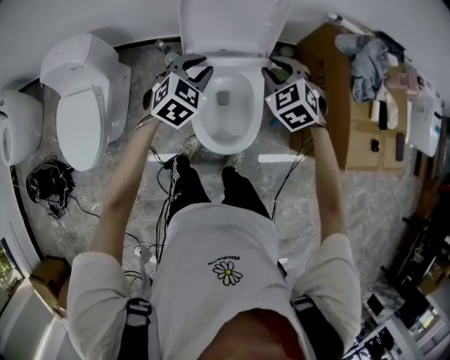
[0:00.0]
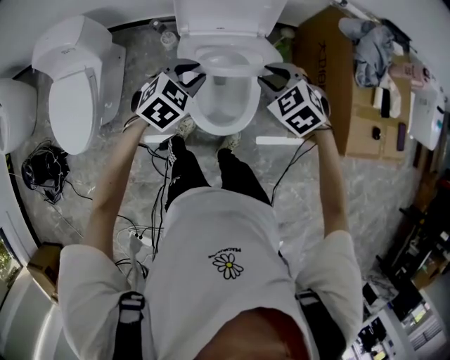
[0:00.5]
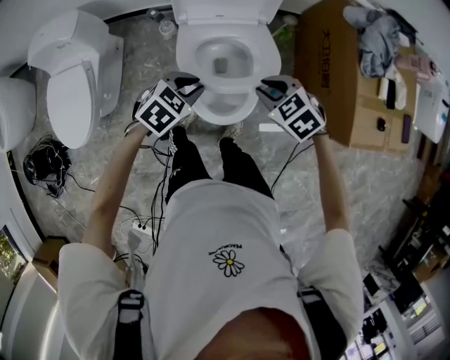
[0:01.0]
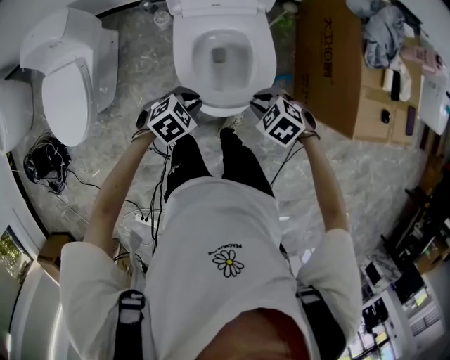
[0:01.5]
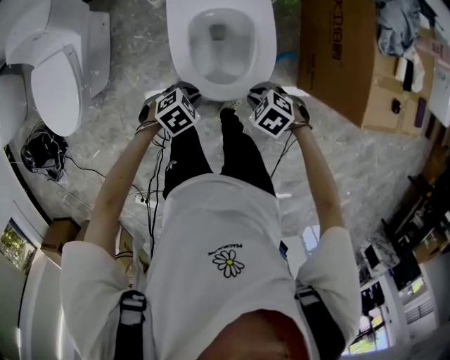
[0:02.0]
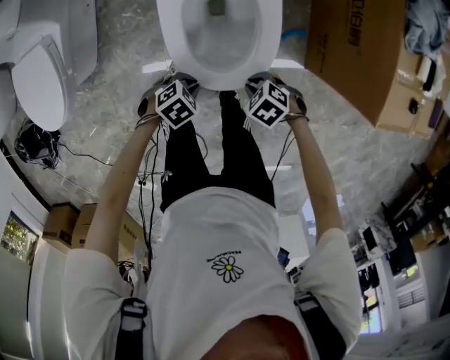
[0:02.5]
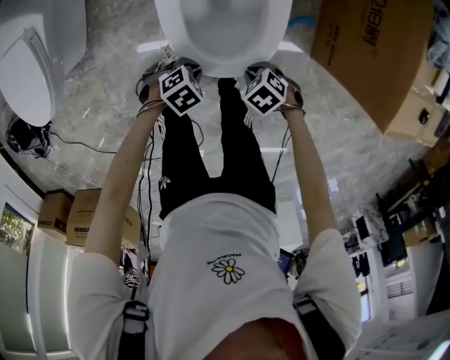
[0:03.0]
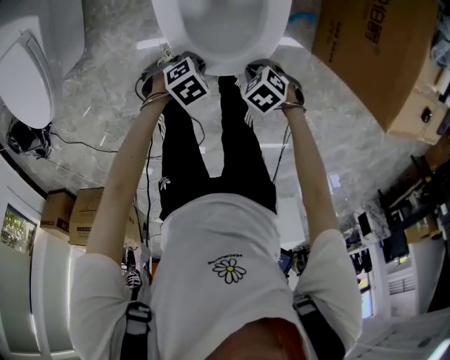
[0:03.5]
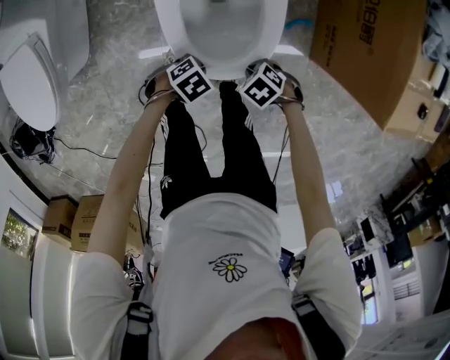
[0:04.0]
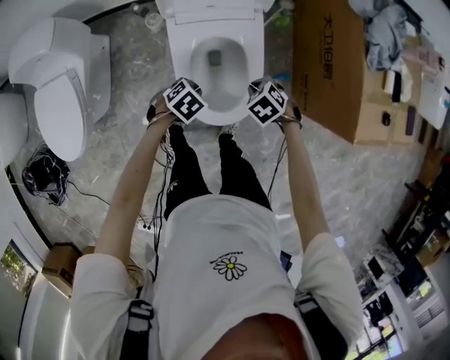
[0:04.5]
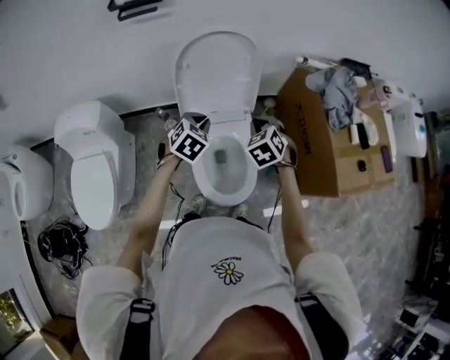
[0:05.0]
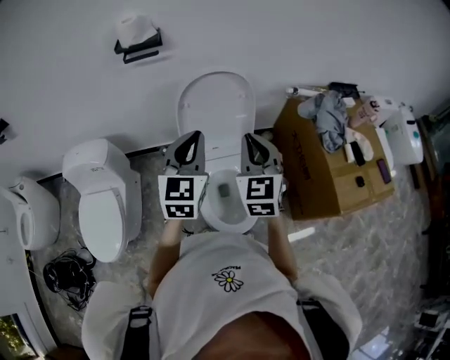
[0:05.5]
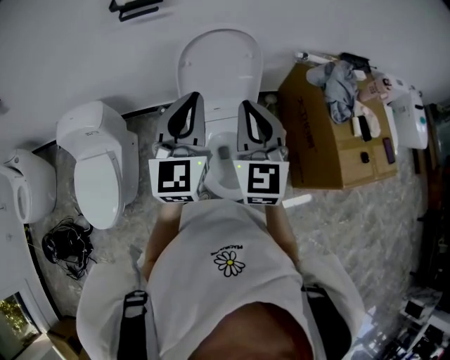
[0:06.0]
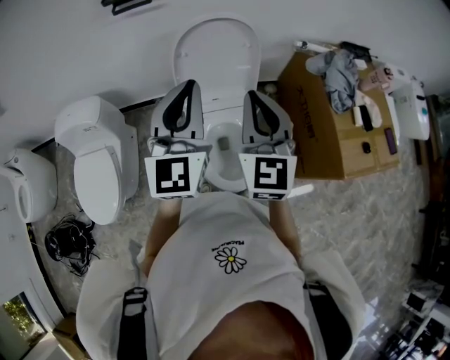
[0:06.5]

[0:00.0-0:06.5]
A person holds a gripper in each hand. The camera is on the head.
0.0 to 2.0 s: The right gripper ends up approximately 35 cm from where it was, and changes its angle by approximately 40 degrees. The left gripper ends up about 35 cm from where it was, and swivels approximately 40 degrees.
2.0 to 4.5 s: The left gripper travels downward and back again, some 15 cm each way. Meanwhile the right gripper reaches about 15 cm downward, then returns.
4.5 to 6.5 s: Both grippers travel together upward, roughly 50 cm. The right gripper angles its fingers upward, by roughly 70 degrees; the left gripper tilts its fingers approximately 80 degrees upward.

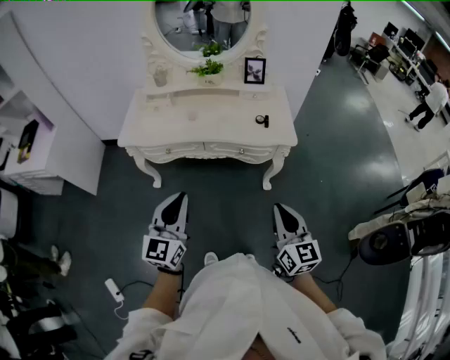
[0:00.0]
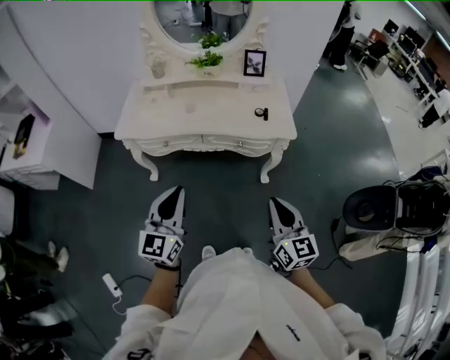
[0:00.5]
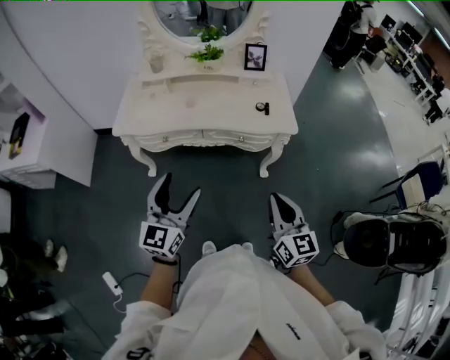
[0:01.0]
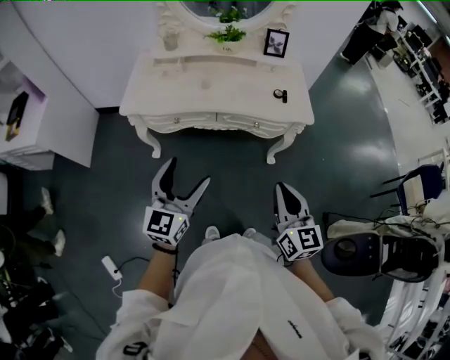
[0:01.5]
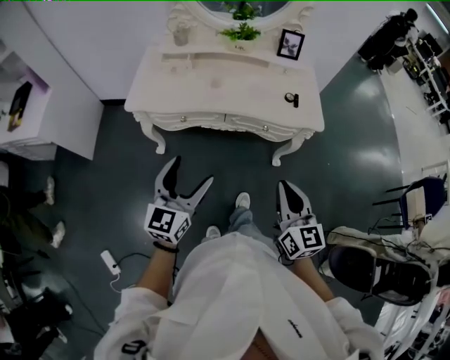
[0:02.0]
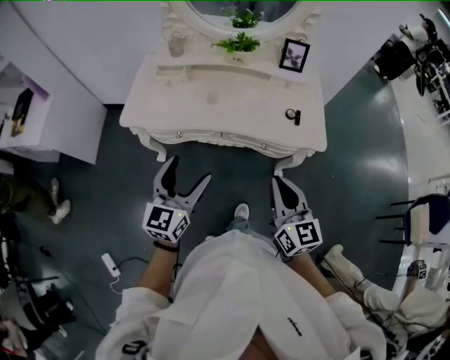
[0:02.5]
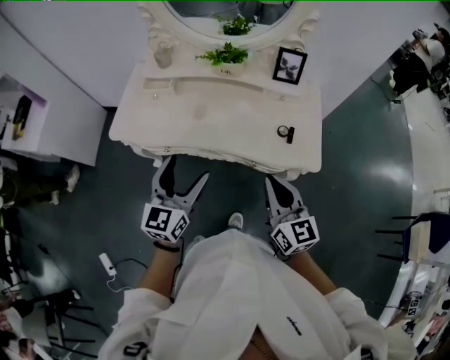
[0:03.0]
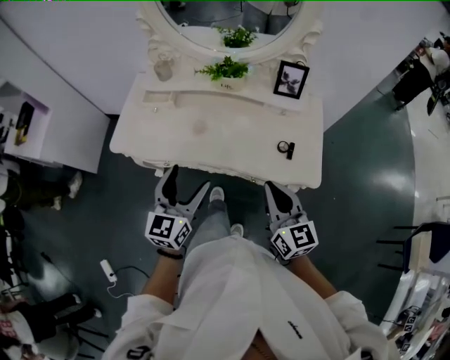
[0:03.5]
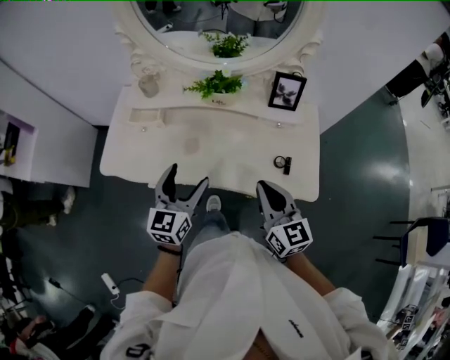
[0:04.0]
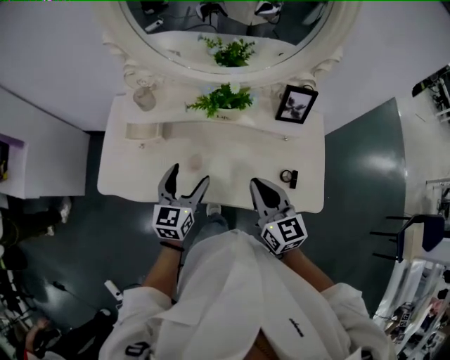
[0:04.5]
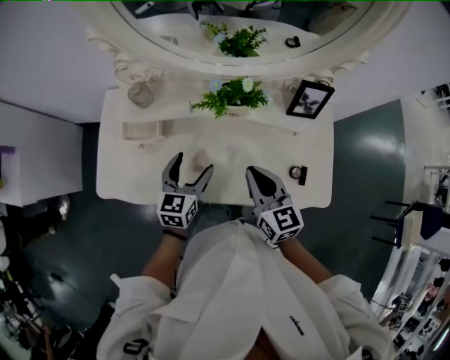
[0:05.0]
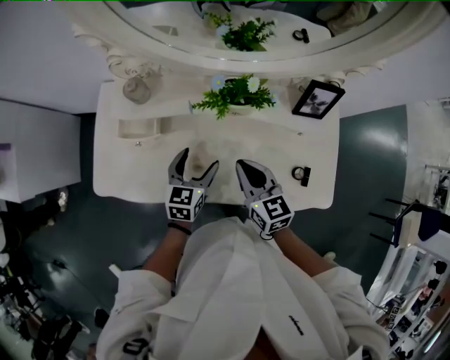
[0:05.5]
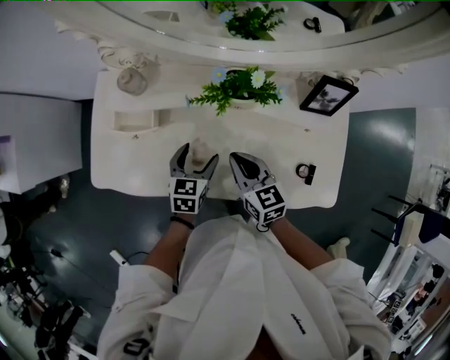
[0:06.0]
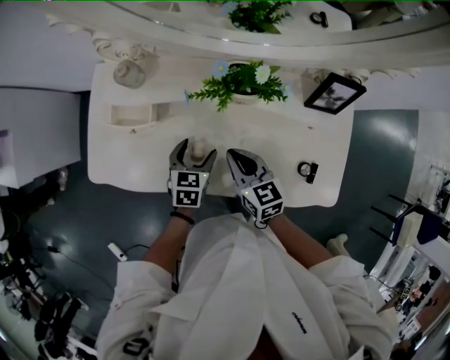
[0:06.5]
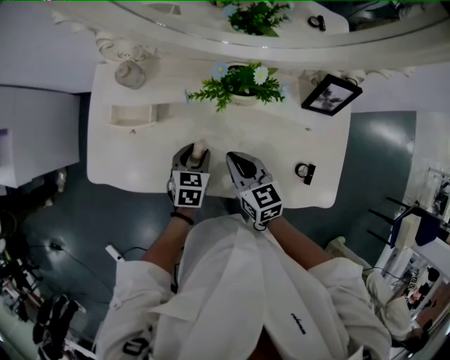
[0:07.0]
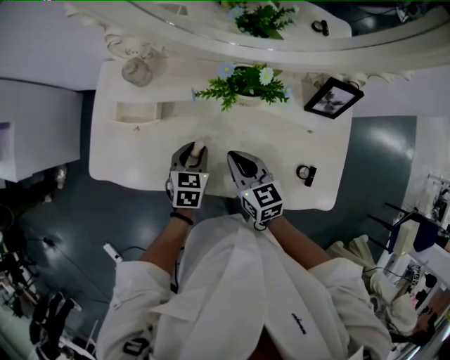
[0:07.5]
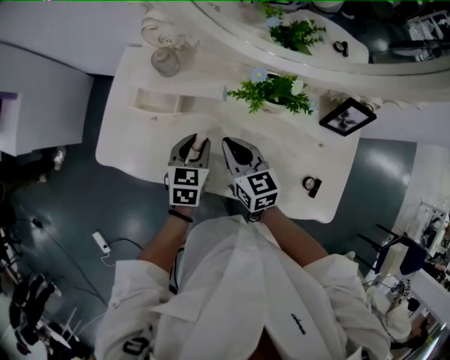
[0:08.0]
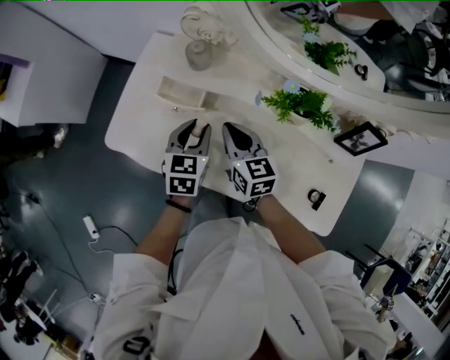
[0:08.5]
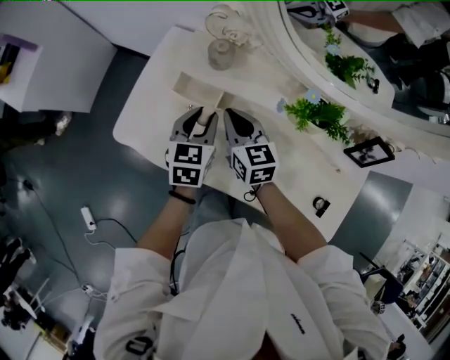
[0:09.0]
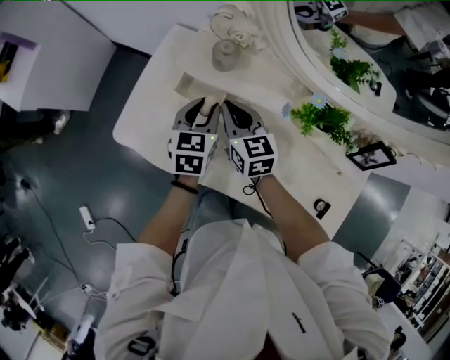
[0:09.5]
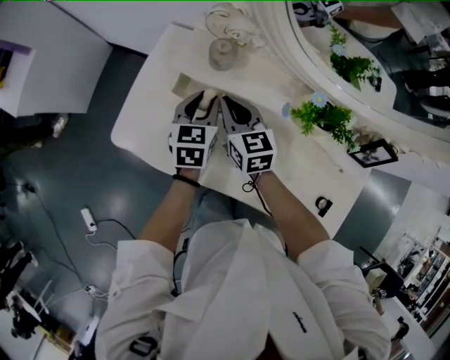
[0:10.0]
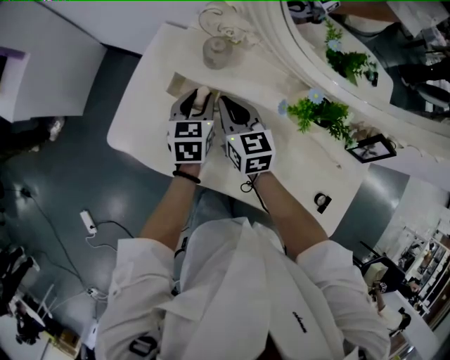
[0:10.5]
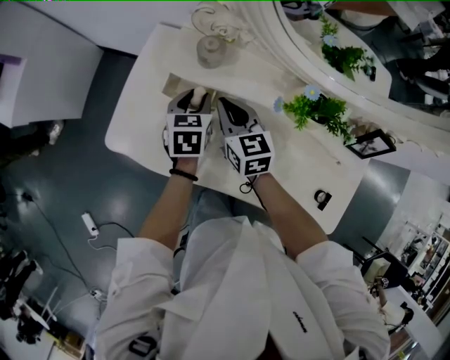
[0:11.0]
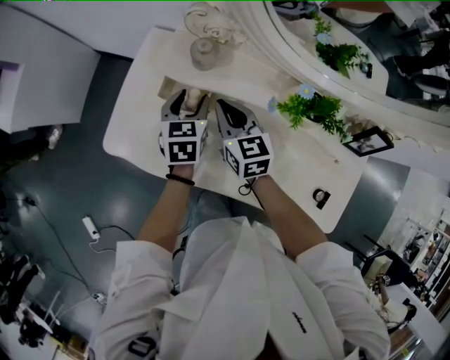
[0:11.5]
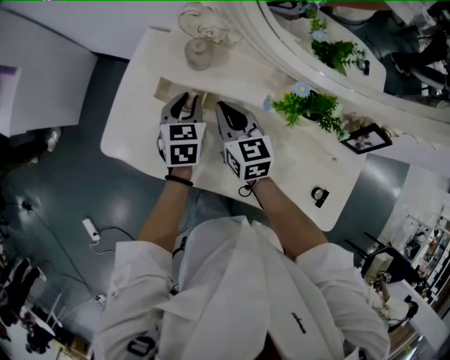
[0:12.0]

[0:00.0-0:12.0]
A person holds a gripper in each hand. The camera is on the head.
0.0 to 2.0 s: The left gripper moves to the left, forward and downward, some 15 cm, and opens up, while the right gripper goes roughly 15 cm to the left and forward.
2.0 to 4.0 s: Both grippers travel together forward, some 35 cm.
4.0 to 6.0 s: The left gripper goes approximately 25 cm downward and forward, and turns by about 30 degrees; the right gripper is displaced forward, downward and to the left by about 30 cm, and rotates about 20 degrees.
6.0 to 8.0 s: Both grippers travel together to the left, about 5 cm. The left gripper closes up.
8.0 to 10.0 s: The two grippers go approximately 15 cm forward and to the left.
10.0 to 12.0 s: The grippers move only a little.

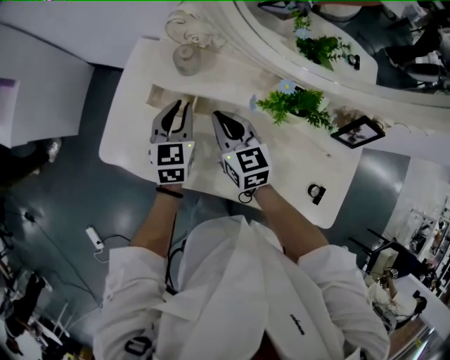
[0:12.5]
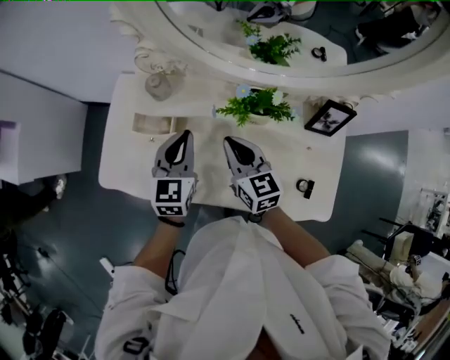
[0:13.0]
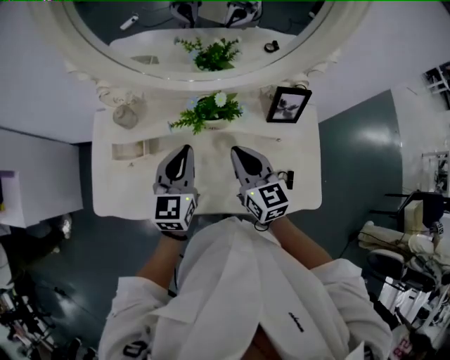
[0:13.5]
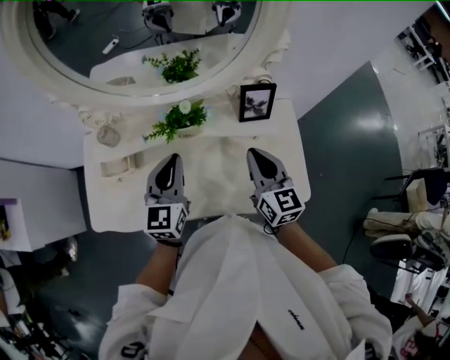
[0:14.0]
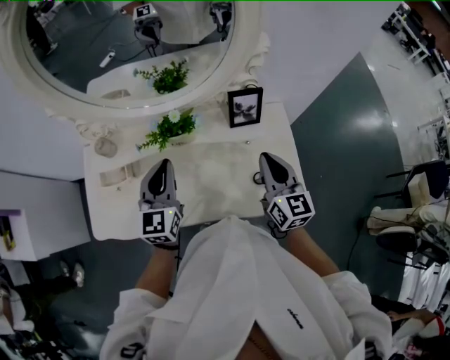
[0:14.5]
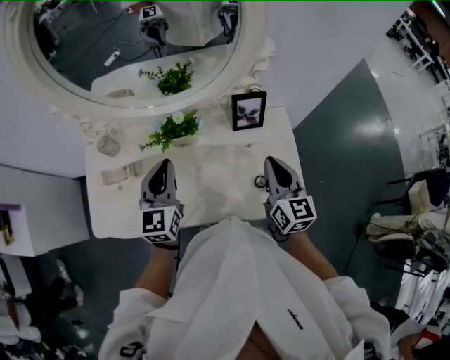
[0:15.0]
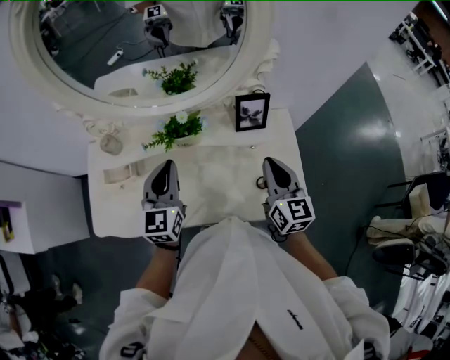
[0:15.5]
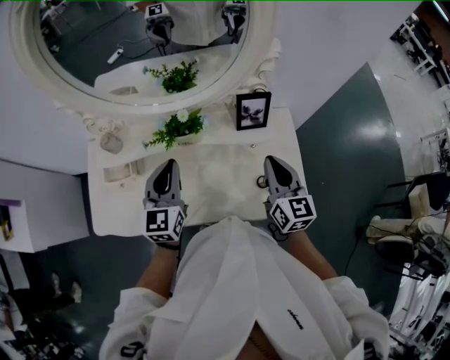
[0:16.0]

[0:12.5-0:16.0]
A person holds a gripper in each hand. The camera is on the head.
12.5 to 14.5 s: The right gripper moves some 50 cm, and swivels approximately 40 degrees. Meanwhile the left gripper shifts by roughly 30 cm, and rotates some 30 degrees.
14.5 to 16.0 s: The two grippers keep their place.

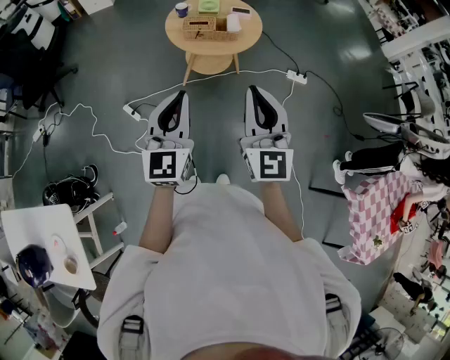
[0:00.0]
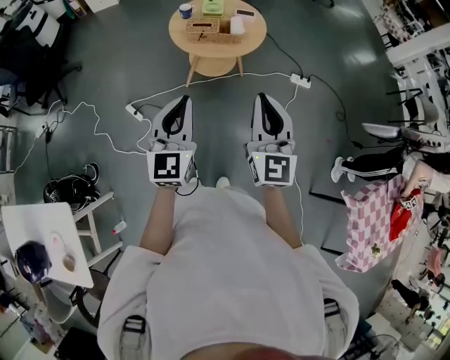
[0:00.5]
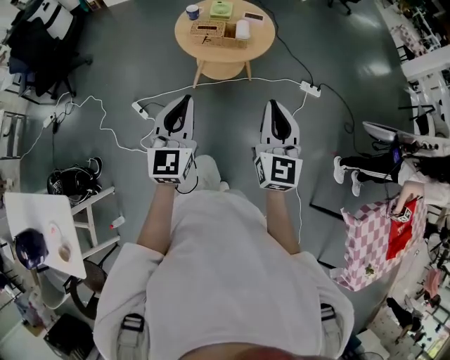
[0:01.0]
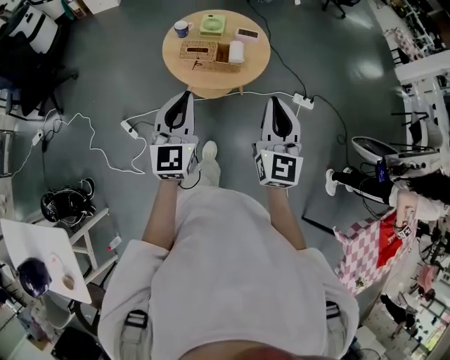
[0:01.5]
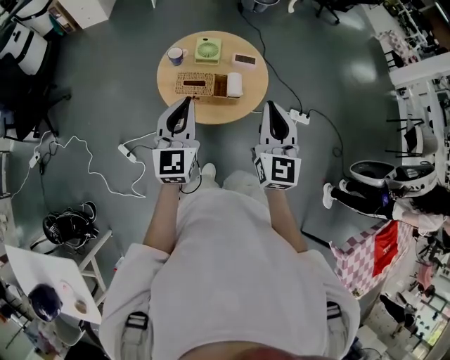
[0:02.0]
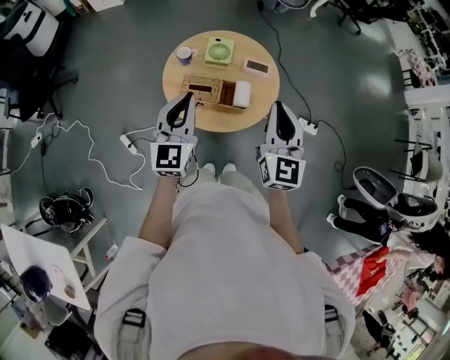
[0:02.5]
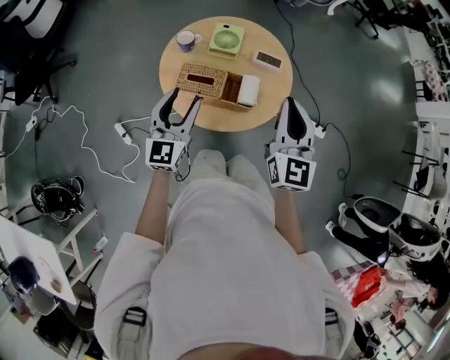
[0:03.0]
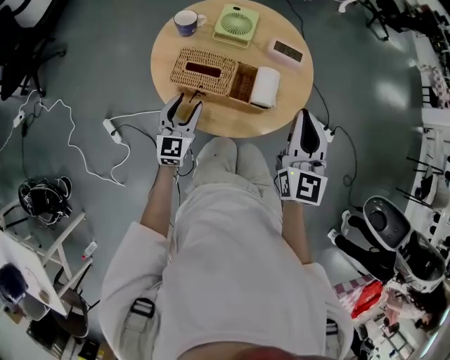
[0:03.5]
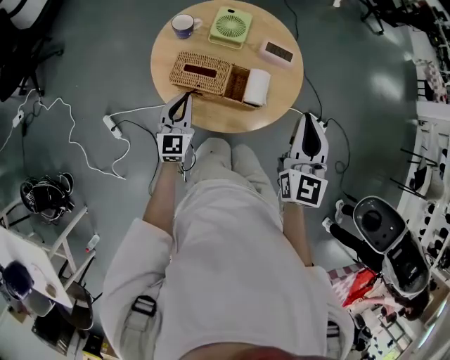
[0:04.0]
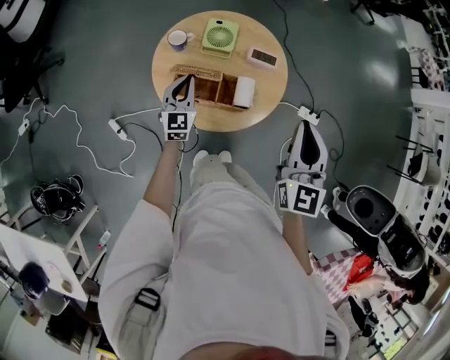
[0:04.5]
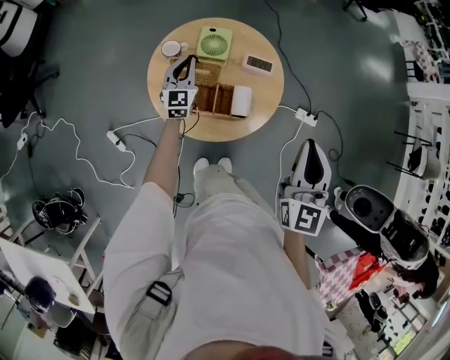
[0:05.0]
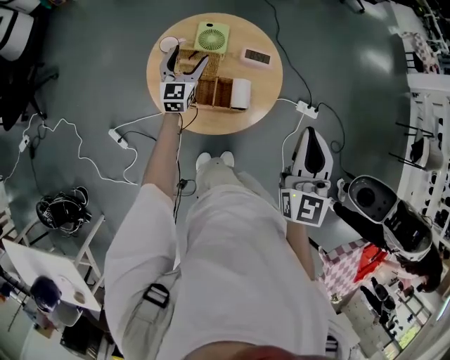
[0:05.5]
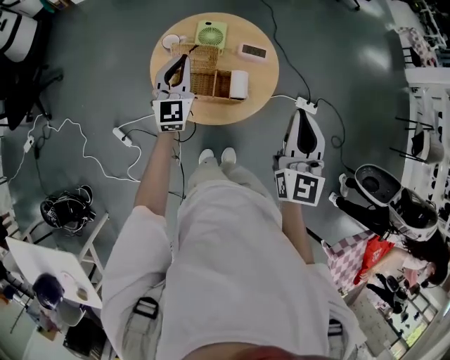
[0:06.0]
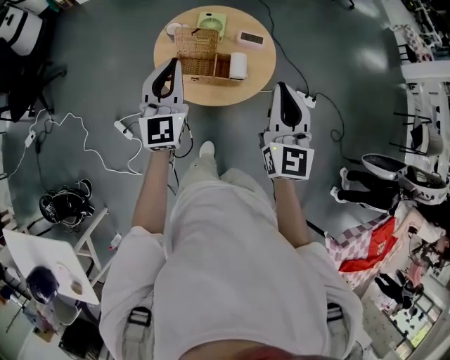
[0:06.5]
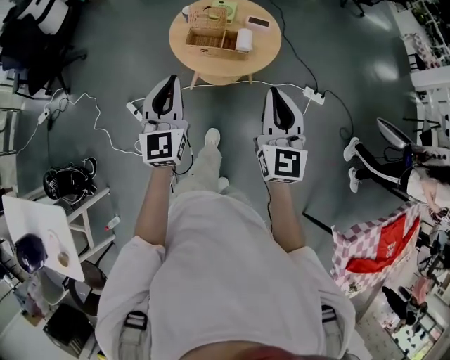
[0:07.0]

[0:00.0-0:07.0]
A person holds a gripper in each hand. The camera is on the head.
0.0 to 2.0 s: The grippers both shift forward by roughly 40 cm.
2.0 to 3.5 s: The right gripper moves downward and forward, about 30 cm. The left gripper moves downward, some 40 cm, and opens.
3.5 to 5.0 s: The left gripper shifts about 25 cm forward and upward, and closes up; the right gripper moves upward, about 20 cm.
5.0 to 7.0 s: The right gripper goes roughly 25 cm backward. Meanwhile the left gripper travels backward and upward by about 50 cm, and opens and closes again.
